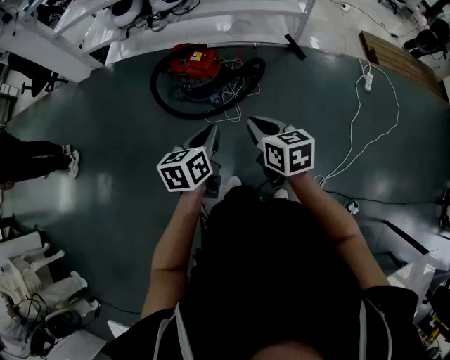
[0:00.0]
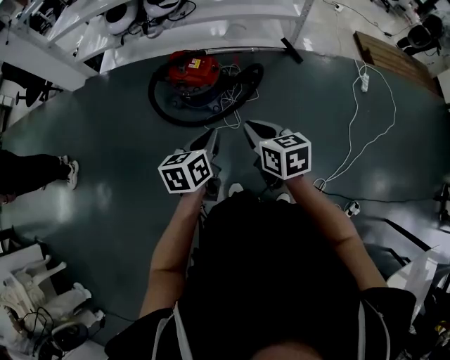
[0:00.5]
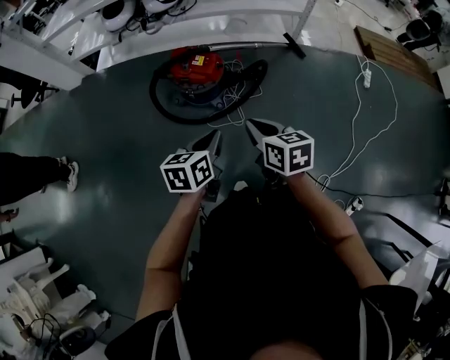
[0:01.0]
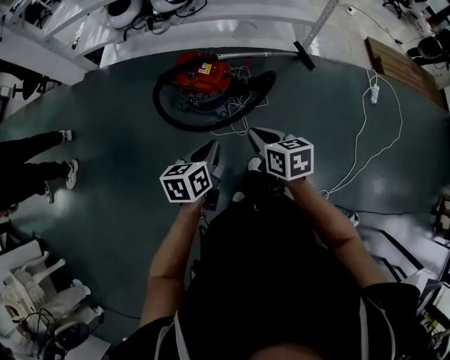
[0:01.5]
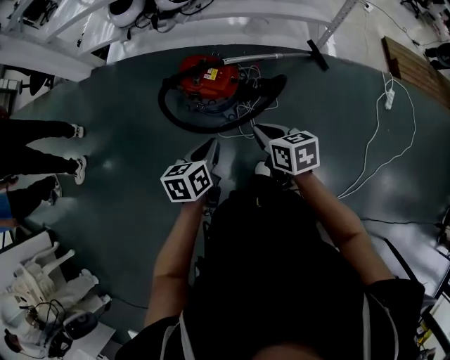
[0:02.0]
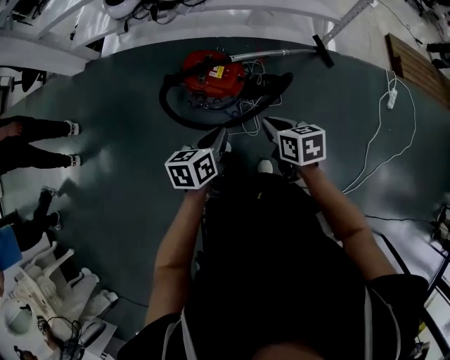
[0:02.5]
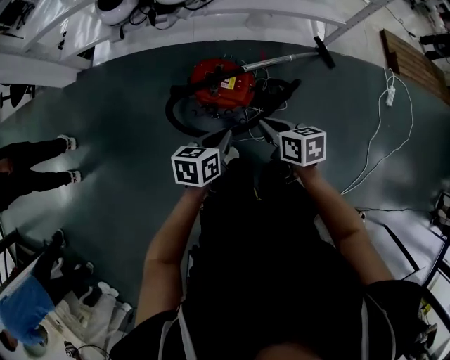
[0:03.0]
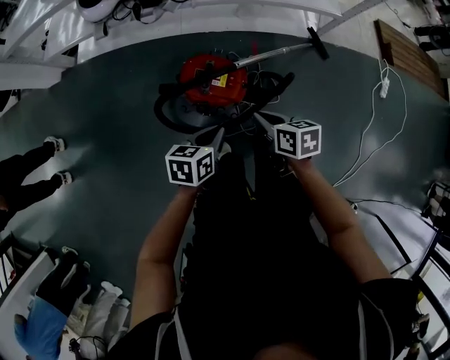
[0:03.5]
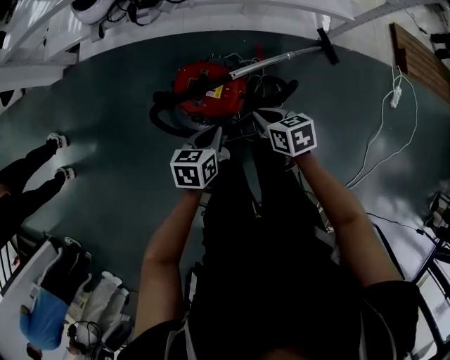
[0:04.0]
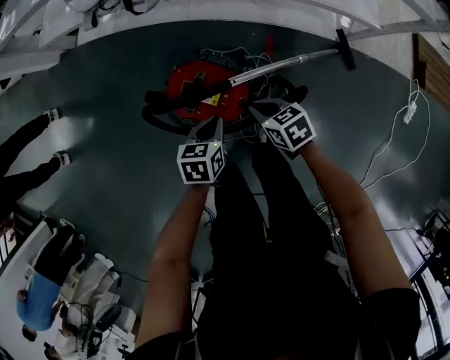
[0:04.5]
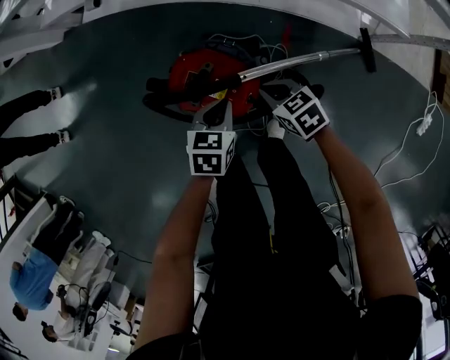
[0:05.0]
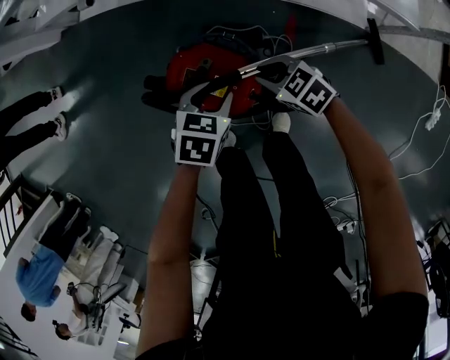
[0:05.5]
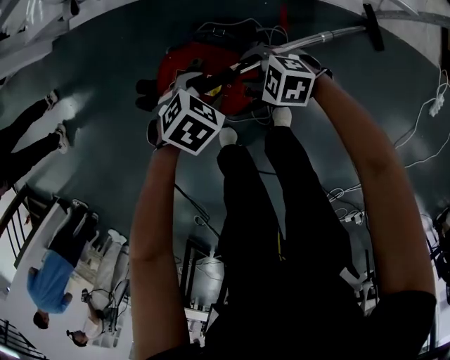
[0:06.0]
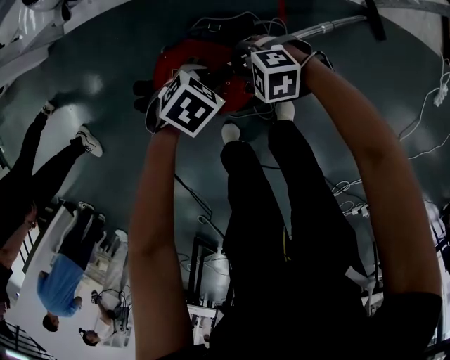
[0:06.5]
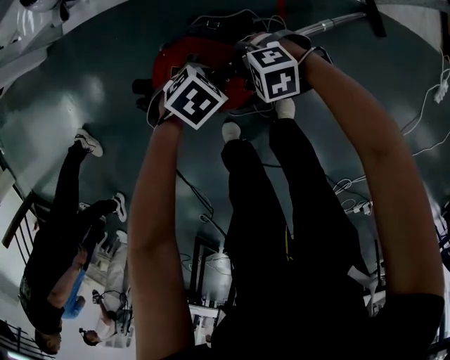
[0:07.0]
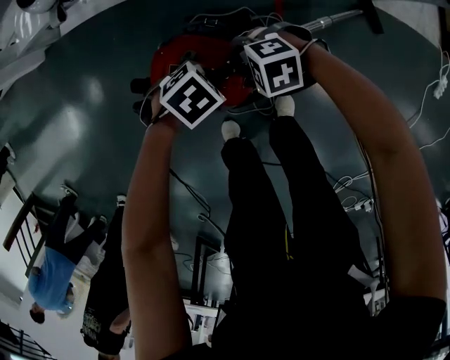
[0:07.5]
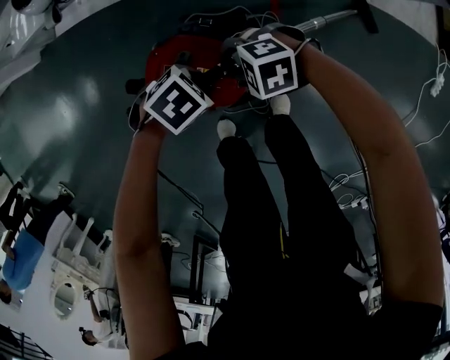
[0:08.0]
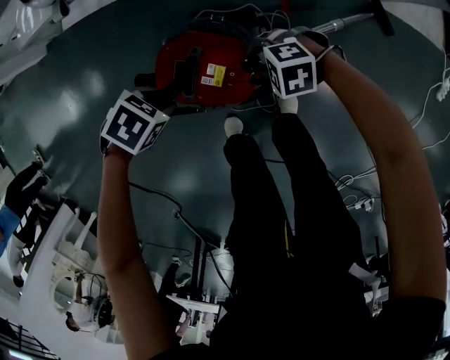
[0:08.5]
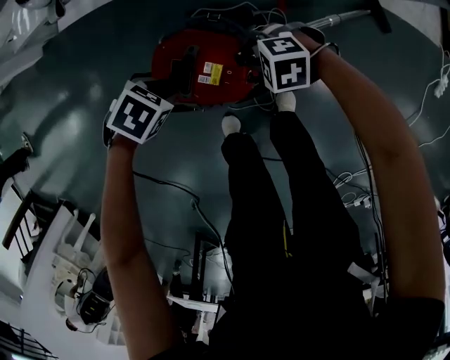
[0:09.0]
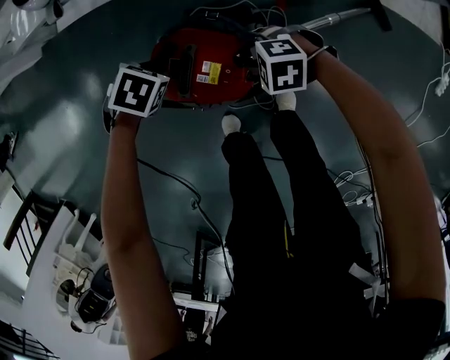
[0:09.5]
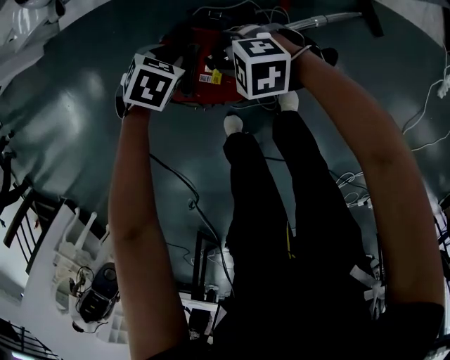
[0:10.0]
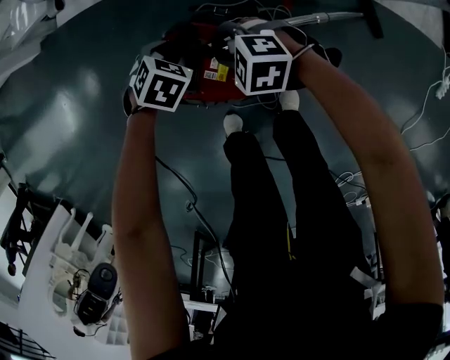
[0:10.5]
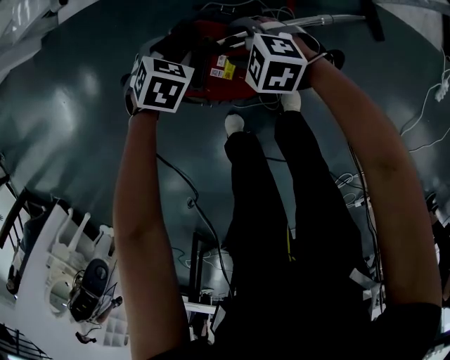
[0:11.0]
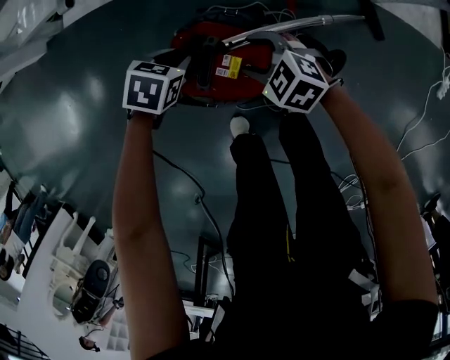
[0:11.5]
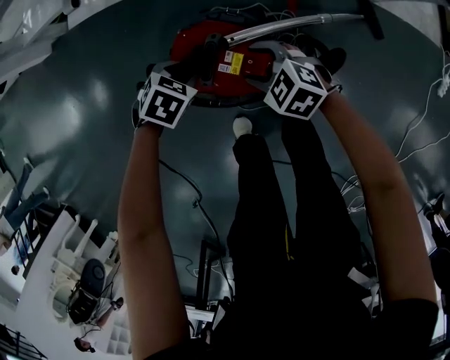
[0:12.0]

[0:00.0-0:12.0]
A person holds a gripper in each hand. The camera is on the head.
0:00.0 to 0:02.0: The two grippers go some 20 cm forward.
0:02.0 to 0:04.0: Both grippers travel together forward and downward, roughly 30 cm.
0:04.0 to 0:06.0: The left gripper shifts by about 20 cm, turns by approximately 50 degrees, and opens; the right gripper moves downward, about 20 cm, rolls counterclockwise, seen from behind, by approximately 60 degrees, and opens up.
0:08.0 to 0:10.0: The left gripper shifts by approximately 10 cm, and swivels approximately 20 degrees.
0:10.0 to 0:12.0: The left gripper shifts by roughly 10 cm, and opens, then closes once more. Meanwhile the right gripper turns by about 20 degrees, and opens.

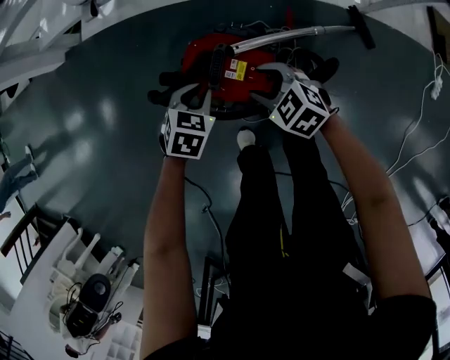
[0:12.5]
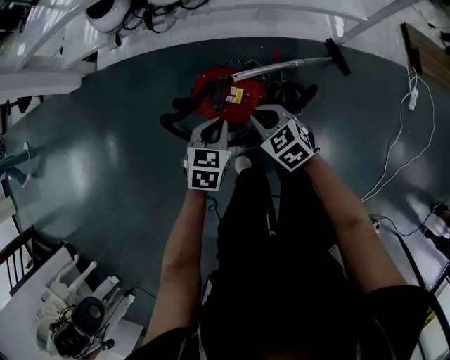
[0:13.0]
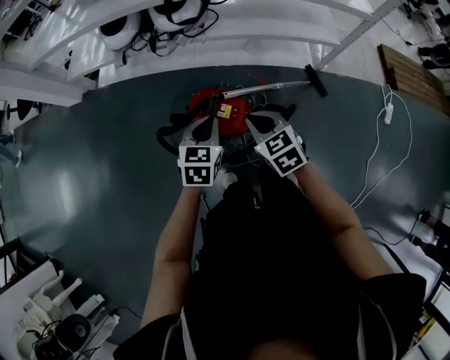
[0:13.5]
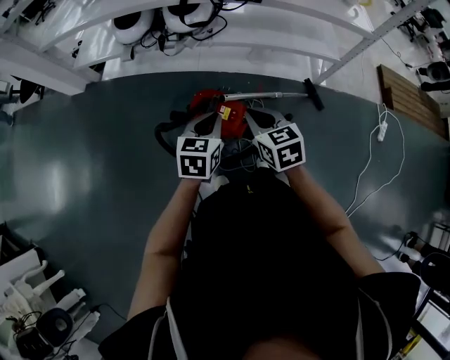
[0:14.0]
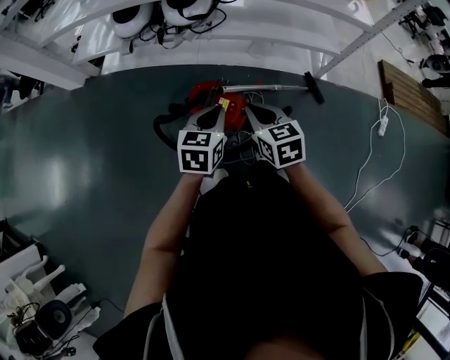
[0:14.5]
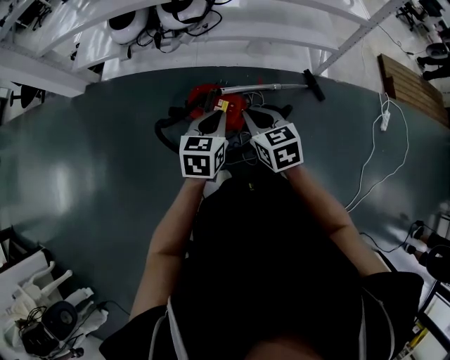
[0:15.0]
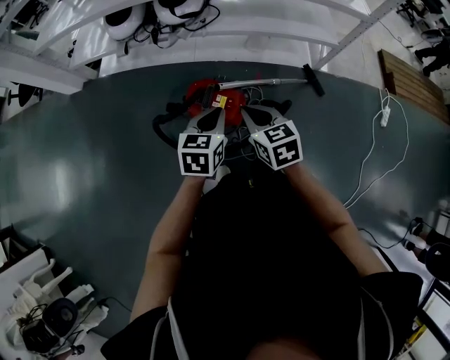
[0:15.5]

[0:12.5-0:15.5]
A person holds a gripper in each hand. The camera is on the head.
0:12.5 to 0:14.0: The two grippers go roughly 30 cm upward. The right gripper swivels approximately 40 degrees, and closes its fingers; the left gripper swivels some 30 degrees.
0:14.0 to 0:15.5: There are only small adjustments of the grippers.

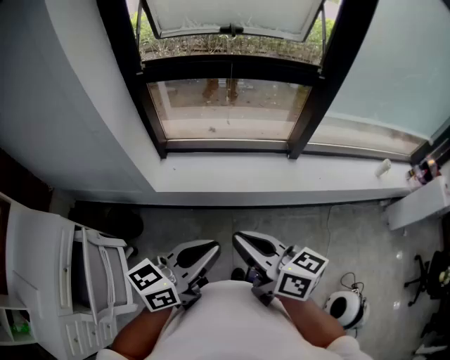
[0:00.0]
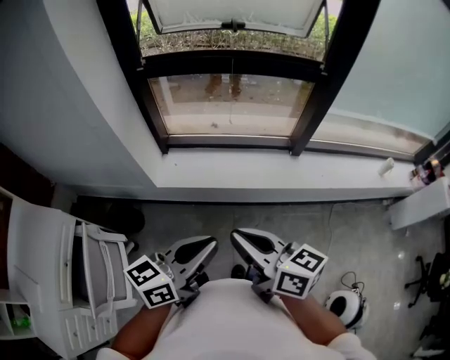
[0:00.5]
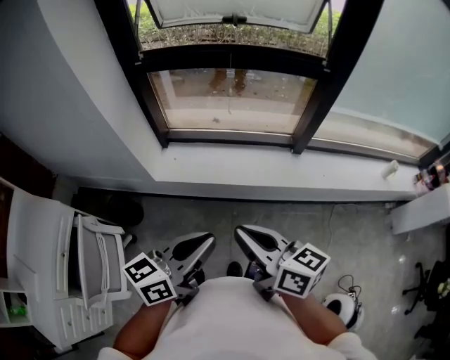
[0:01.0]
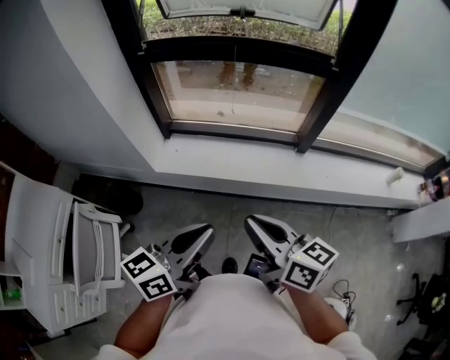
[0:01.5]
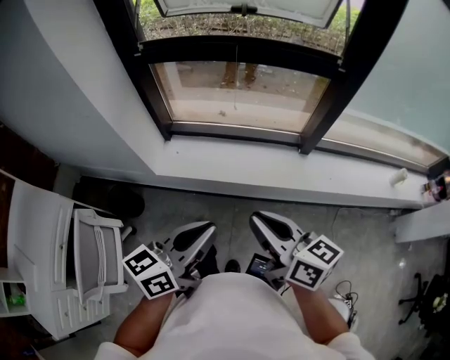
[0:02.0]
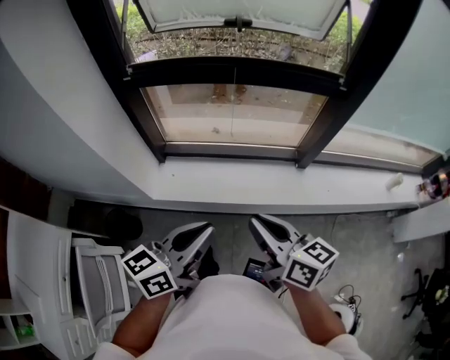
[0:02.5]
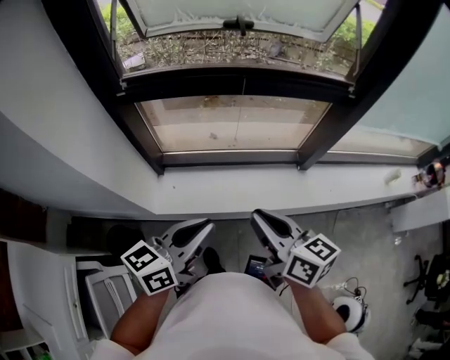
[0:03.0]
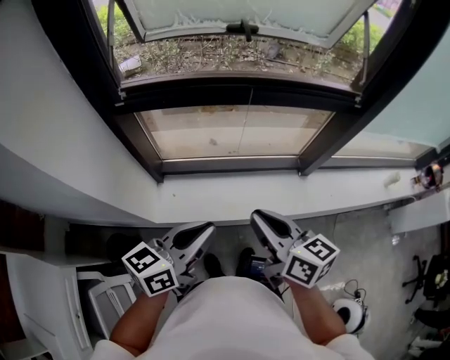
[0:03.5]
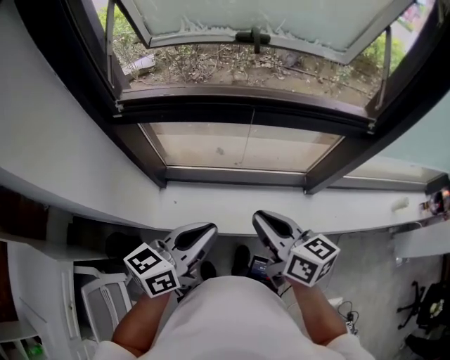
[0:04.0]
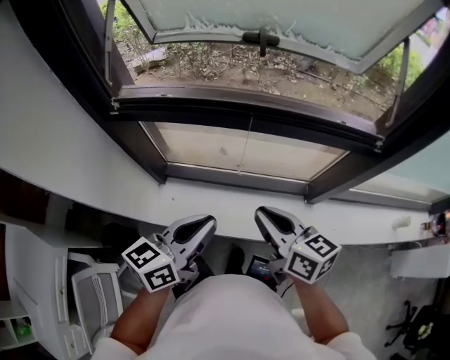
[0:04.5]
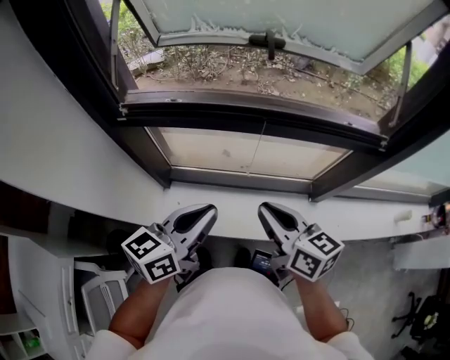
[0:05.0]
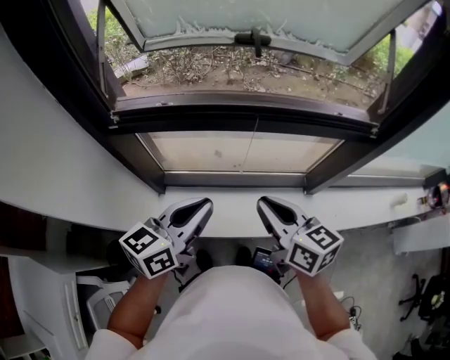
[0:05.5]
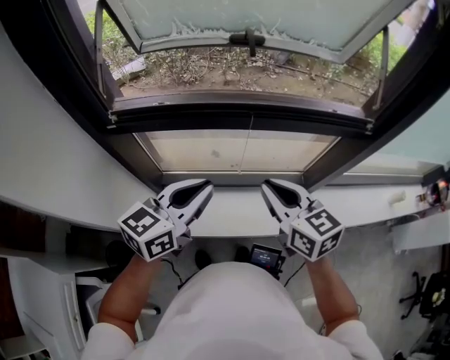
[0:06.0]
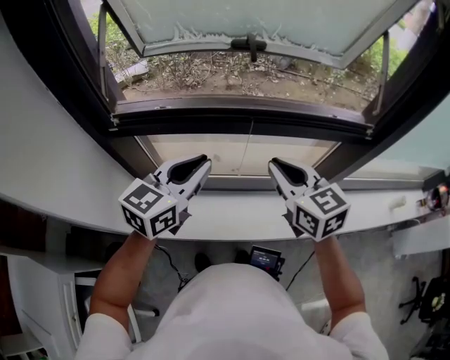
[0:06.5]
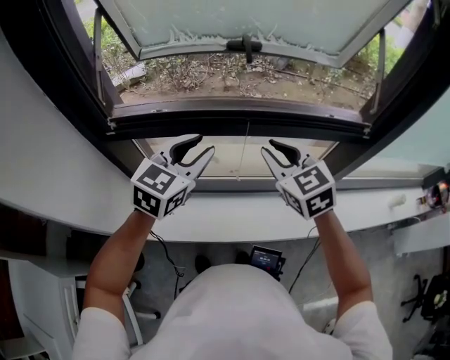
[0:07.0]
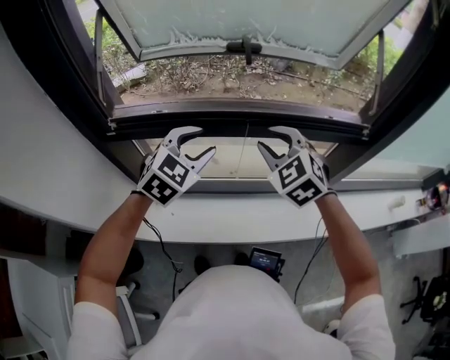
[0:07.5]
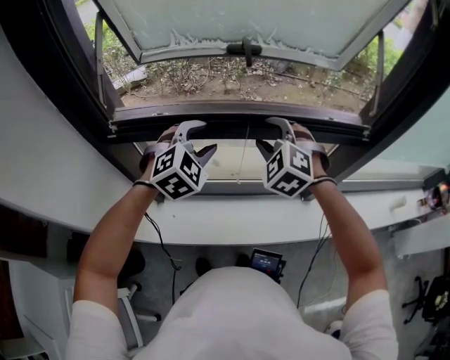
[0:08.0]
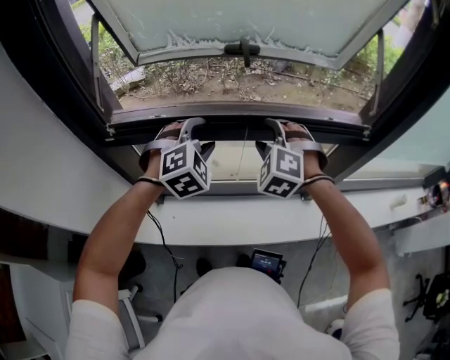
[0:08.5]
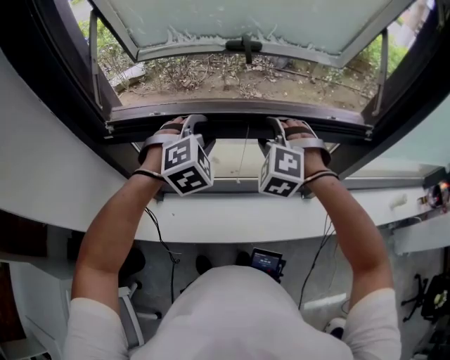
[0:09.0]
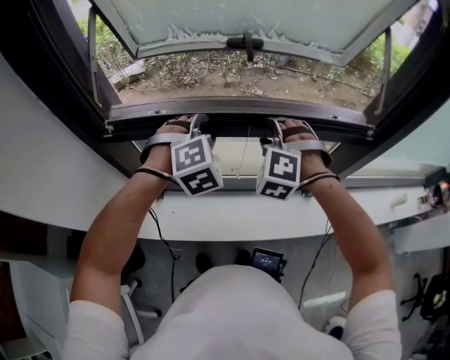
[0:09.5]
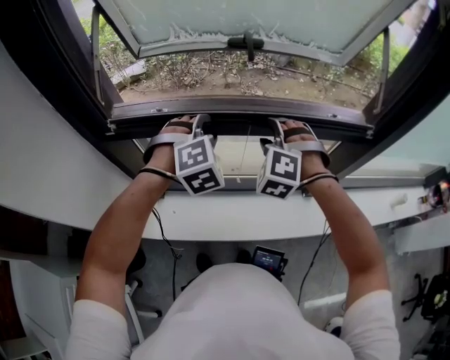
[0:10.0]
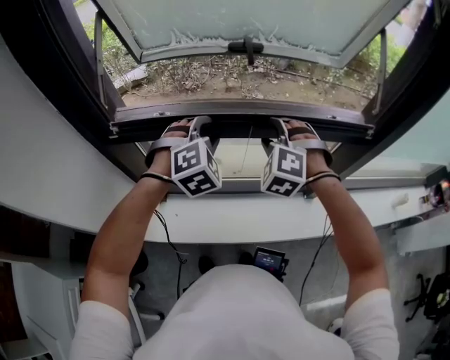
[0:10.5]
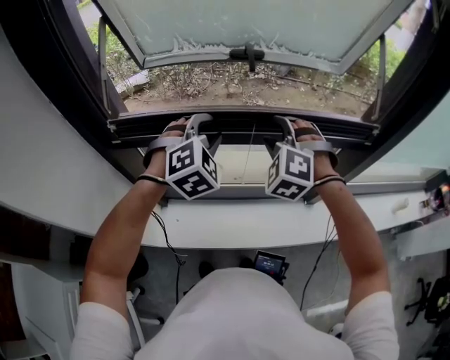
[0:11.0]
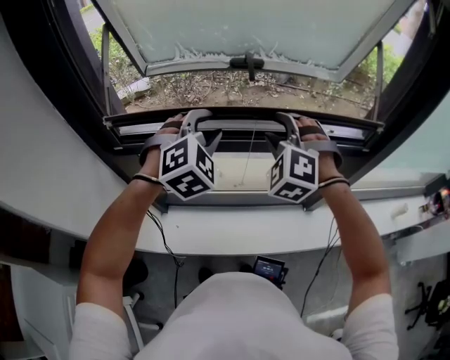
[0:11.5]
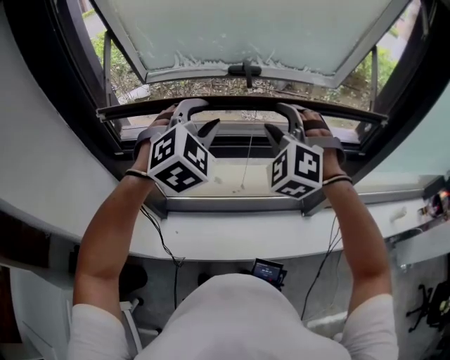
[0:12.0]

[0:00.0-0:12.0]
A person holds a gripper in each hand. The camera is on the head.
0:00.0 to 0:02.0: The left gripper moves forward and to the right, about 10 cm. The right gripper moves to the right and forward, approximately 15 cm.
0:02.0 to 0:04.0: The grippers both shift forward by roughly 30 cm.
0:04.0 to 0:06.0: Both grippers move forward, roughly 10 cm. The right gripper rotates roughly 20 degrees.
0:06.0 to 0:08.0: The grippers both shift forward by approximately 15 cm. The left gripper twists about 60 degrees clockwise, seen from behind, and opens up. Meanwhile the right gripper rolls counterclockwise, seen from behind, by about 60 degrees, and opens its fingers.
0:10.0 to 0:12.0: The two grippers go some 15 cm upward. The left gripper swivels about 20 degrees.
